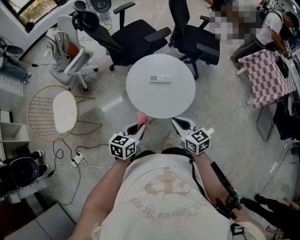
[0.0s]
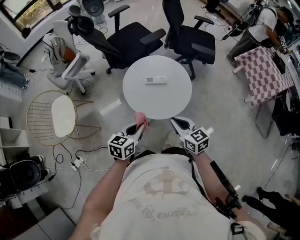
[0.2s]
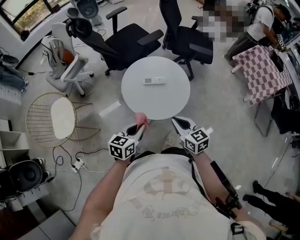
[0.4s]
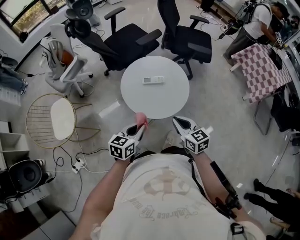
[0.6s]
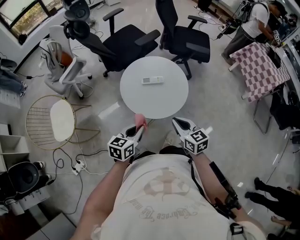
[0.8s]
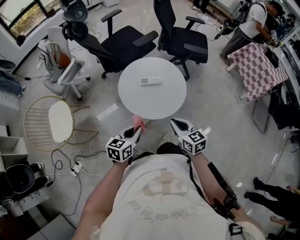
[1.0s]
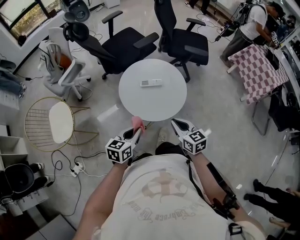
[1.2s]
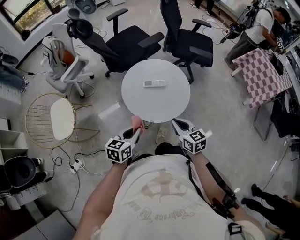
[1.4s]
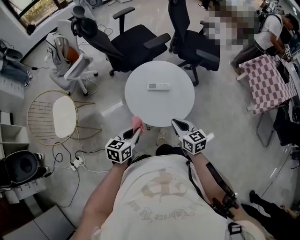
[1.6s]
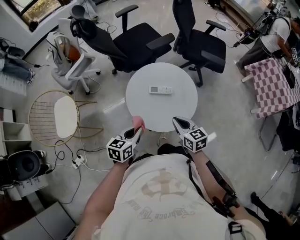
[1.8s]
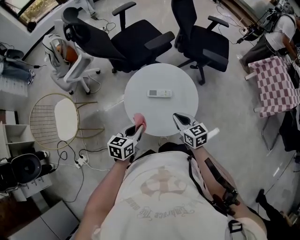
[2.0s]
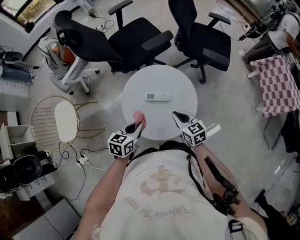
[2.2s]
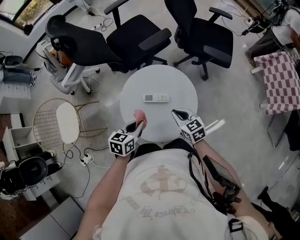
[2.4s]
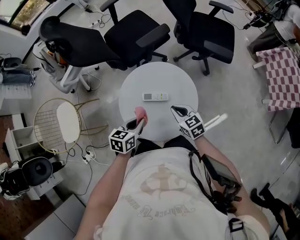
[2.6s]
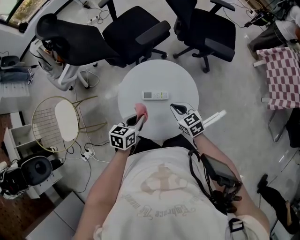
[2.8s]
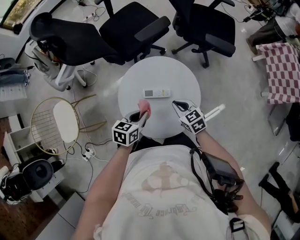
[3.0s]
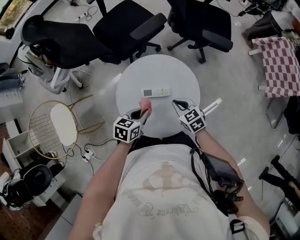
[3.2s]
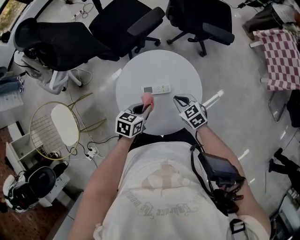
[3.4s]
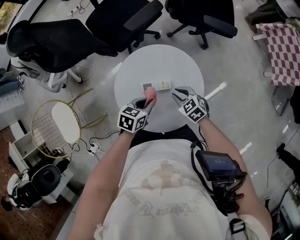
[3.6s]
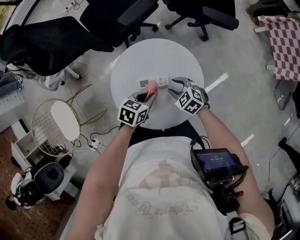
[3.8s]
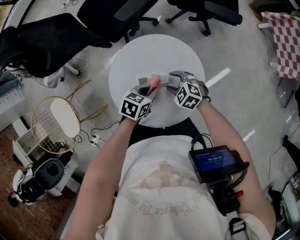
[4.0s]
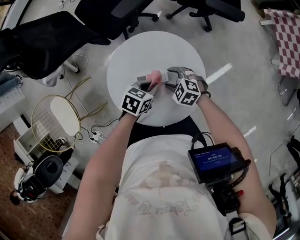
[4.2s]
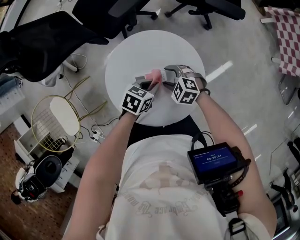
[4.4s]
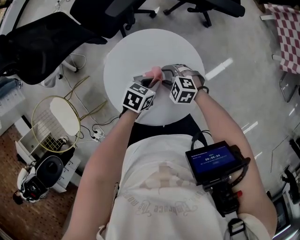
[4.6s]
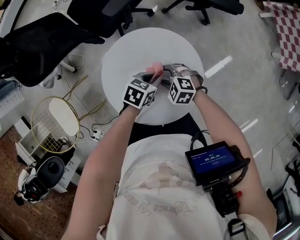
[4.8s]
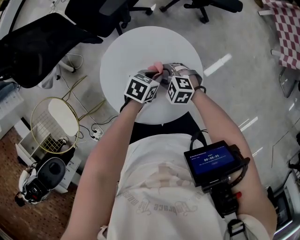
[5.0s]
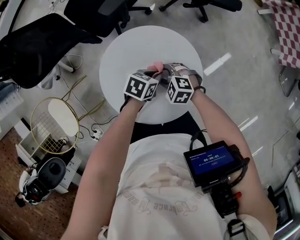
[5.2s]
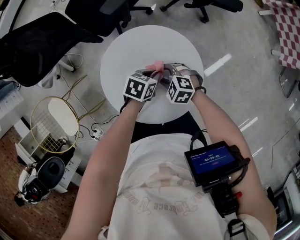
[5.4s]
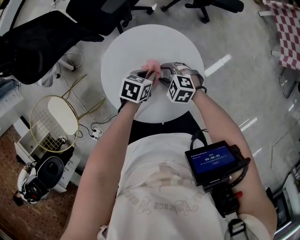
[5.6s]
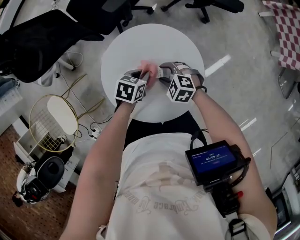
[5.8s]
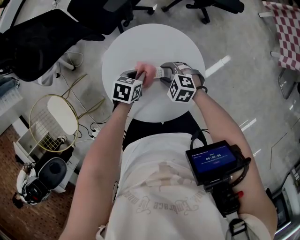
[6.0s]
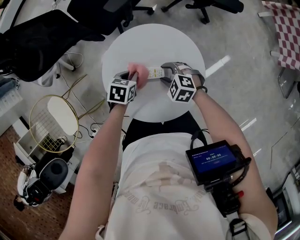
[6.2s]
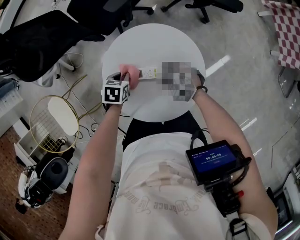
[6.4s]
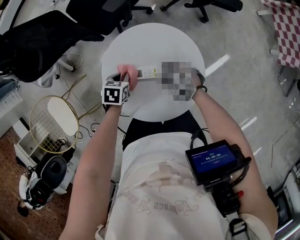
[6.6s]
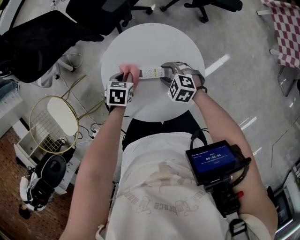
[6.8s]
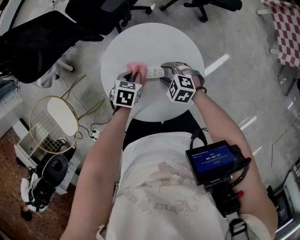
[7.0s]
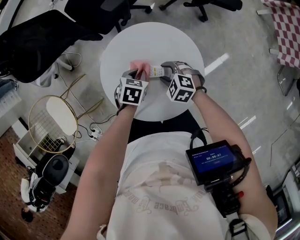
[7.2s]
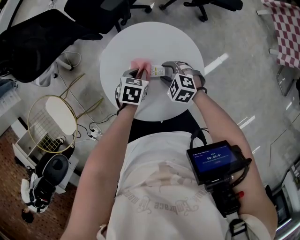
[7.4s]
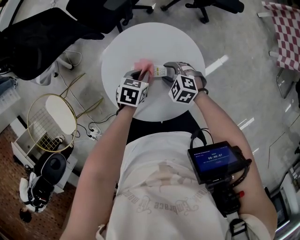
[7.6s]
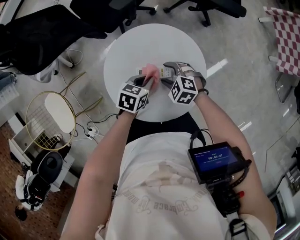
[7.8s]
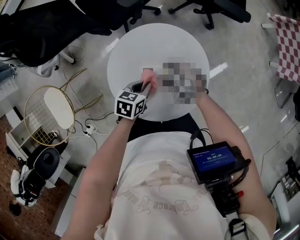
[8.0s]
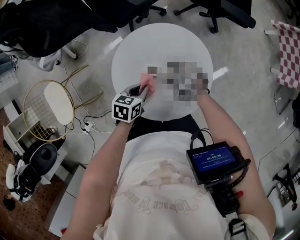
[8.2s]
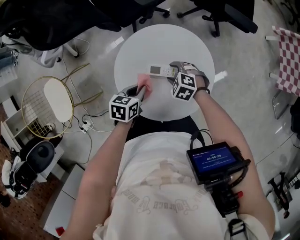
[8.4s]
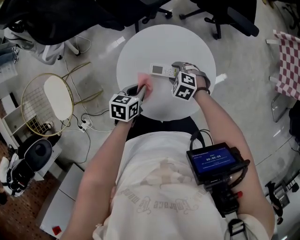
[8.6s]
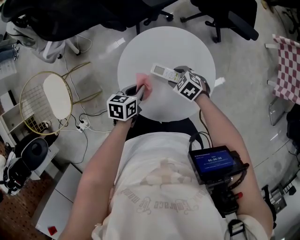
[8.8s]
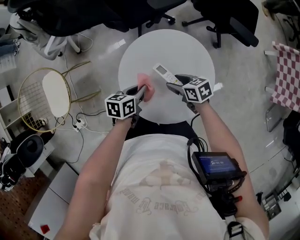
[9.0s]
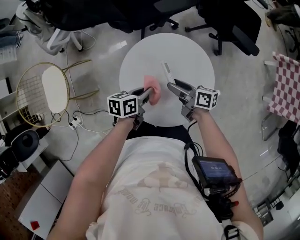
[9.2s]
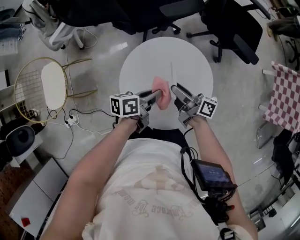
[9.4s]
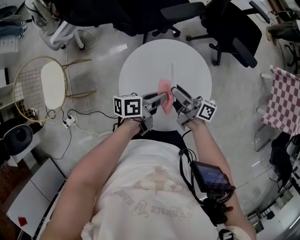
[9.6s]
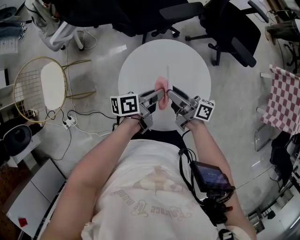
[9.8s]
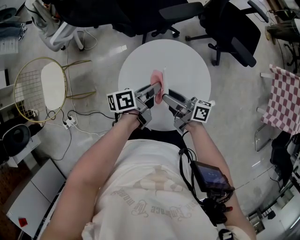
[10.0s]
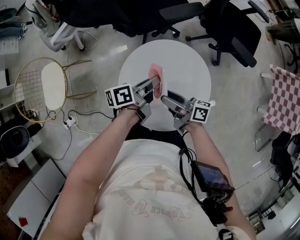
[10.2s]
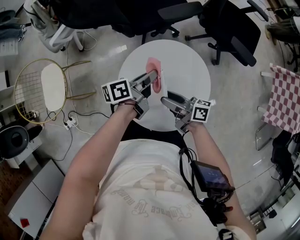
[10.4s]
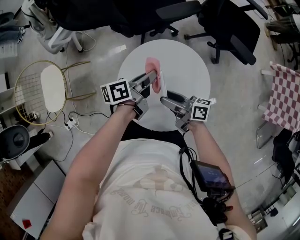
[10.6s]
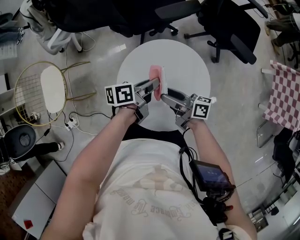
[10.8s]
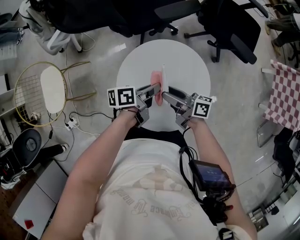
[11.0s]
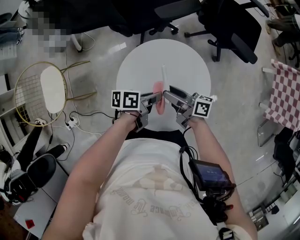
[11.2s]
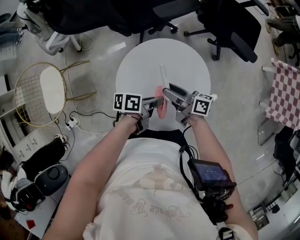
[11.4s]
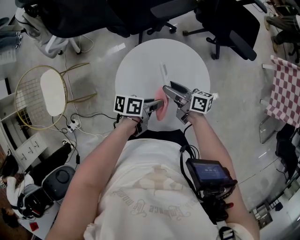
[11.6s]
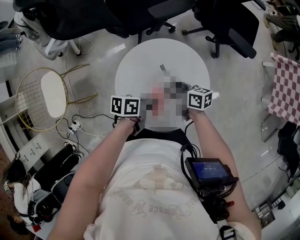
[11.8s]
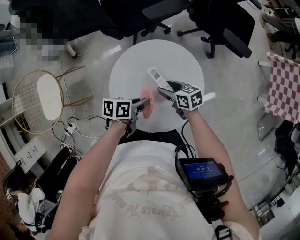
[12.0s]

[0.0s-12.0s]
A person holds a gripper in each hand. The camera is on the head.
0.0s to 1.6s: The right gripper changes place by some 5 cm.
1.6s to 3.0s: The right gripper heads forward and downward, covering roughly 20 cm. The left gripper goes some 20 cm forward.
3.0s to 4.4s: The right gripper is displaced downward by about 10 cm, rotates approximately 30 degrees, and opens its fingers; the left gripper moves roughly 15 cm, and changes its angle by roughly 30 degrees.
4.4s to 6.0s: The left gripper ends up some 5 cm from where it was.
7.6s to 9.0s: The left gripper changes place by about 10 cm, and swivels about 40 degrees; the right gripper rolls clockwise, seen from behind, by roughly 40 degrees.
9.0s to 10.4s: The grippers both shift upward by approximately 10 cm. The left gripper swivels roughly 40 degrees. The right gripper tilts its fingers some 40 degrees upward.
10.4s to 12.0s: The left gripper moves about 15 cm, and changes its angle by some 30 degrees, while the right gripper goes some 10 cm downward, and tips its fingers downward by some 40 degrees.

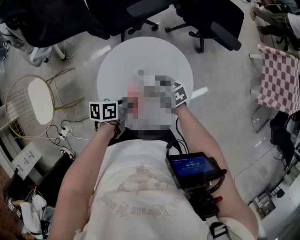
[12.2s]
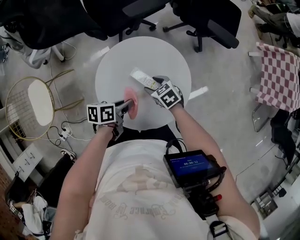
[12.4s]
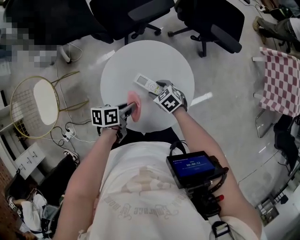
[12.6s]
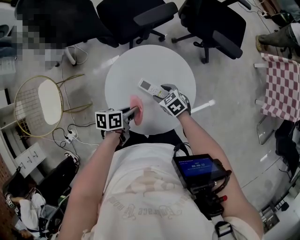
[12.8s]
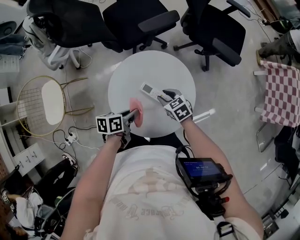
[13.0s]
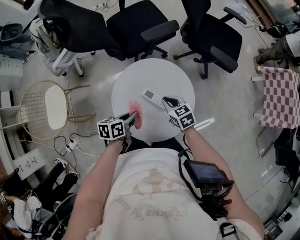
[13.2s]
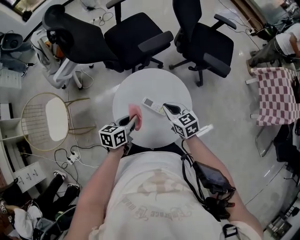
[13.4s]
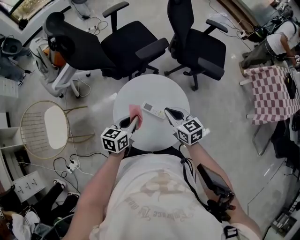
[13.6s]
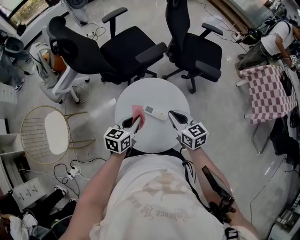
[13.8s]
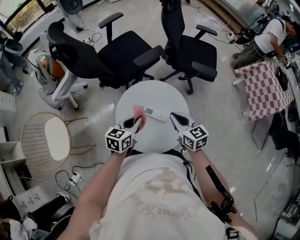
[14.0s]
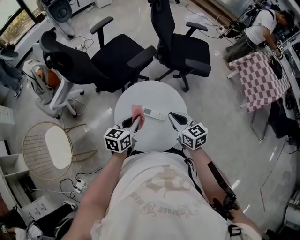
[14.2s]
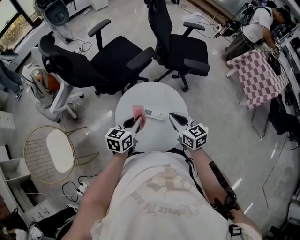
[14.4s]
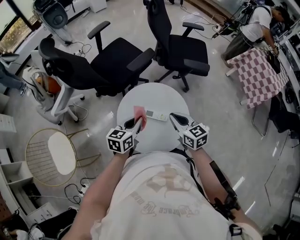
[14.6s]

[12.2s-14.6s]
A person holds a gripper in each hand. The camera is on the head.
12.2s to 13.4s: The right gripper moves upward, approximately 15 cm, turns by approximately 20 degrees, and closes up; the left gripper travels upward by about 10 cm, and rotates approximately 30 degrees.
13.4s to 14.6s: The two grippers go about 10 cm upward. The right gripper changes its angle by approximately 20 degrees, while the left gripper turns by approximately 20 degrees.

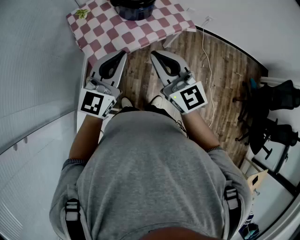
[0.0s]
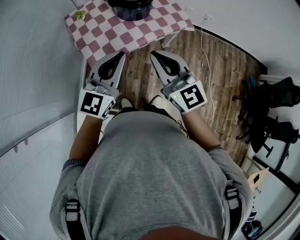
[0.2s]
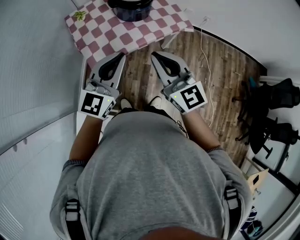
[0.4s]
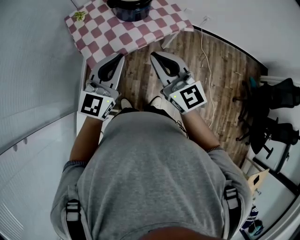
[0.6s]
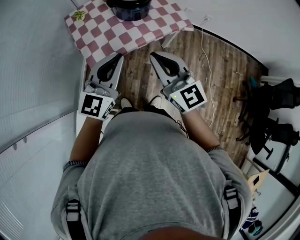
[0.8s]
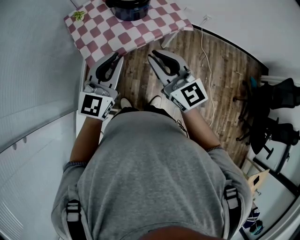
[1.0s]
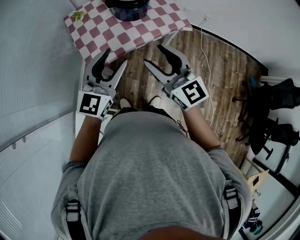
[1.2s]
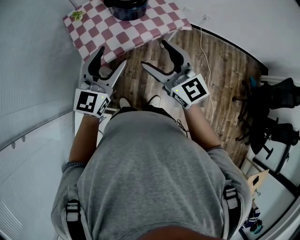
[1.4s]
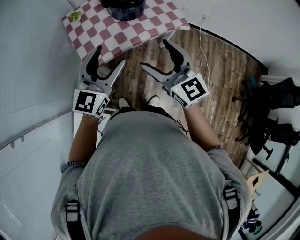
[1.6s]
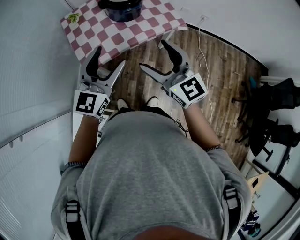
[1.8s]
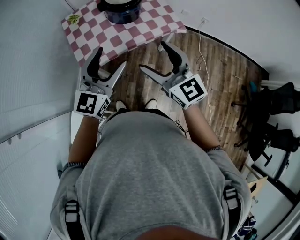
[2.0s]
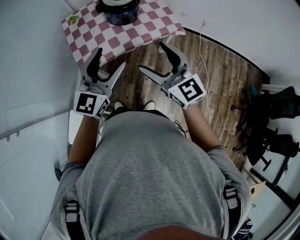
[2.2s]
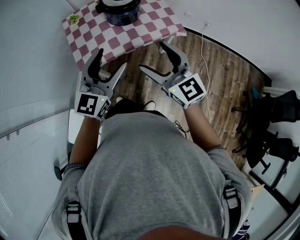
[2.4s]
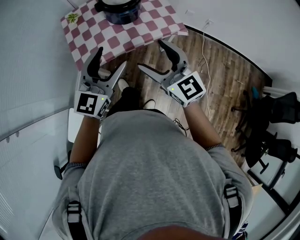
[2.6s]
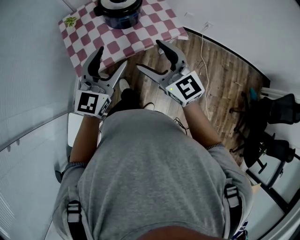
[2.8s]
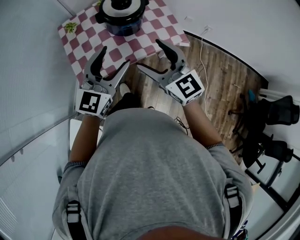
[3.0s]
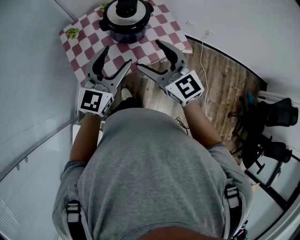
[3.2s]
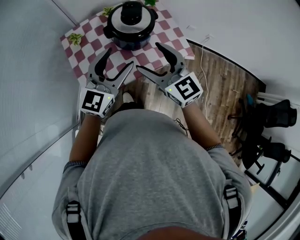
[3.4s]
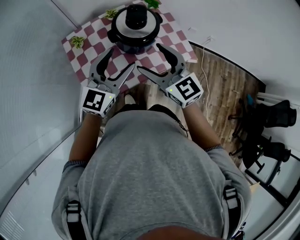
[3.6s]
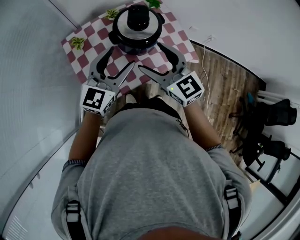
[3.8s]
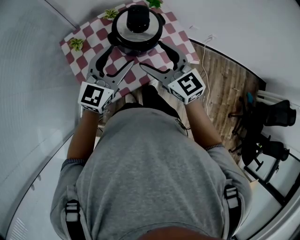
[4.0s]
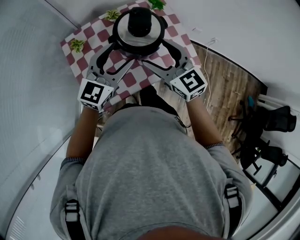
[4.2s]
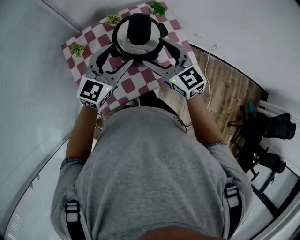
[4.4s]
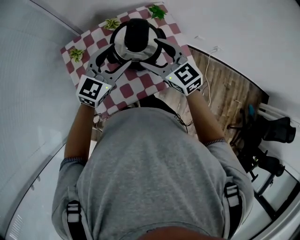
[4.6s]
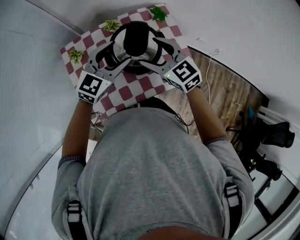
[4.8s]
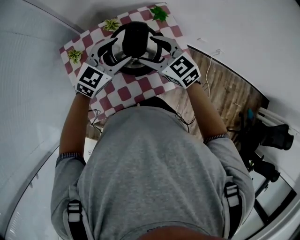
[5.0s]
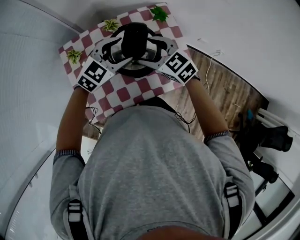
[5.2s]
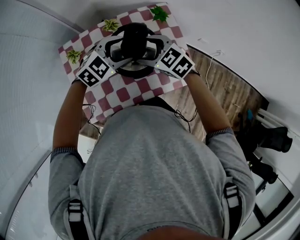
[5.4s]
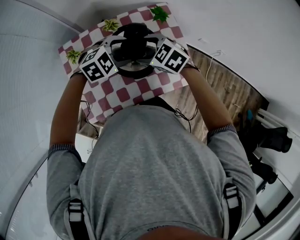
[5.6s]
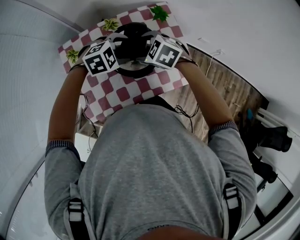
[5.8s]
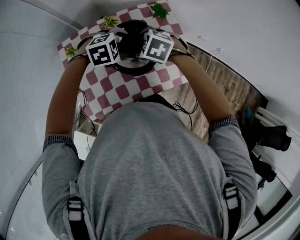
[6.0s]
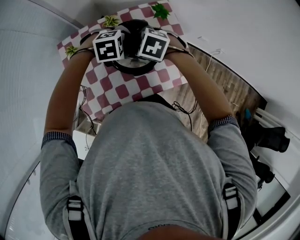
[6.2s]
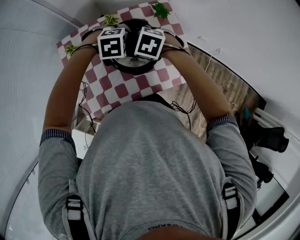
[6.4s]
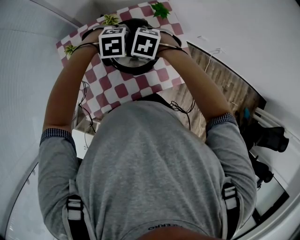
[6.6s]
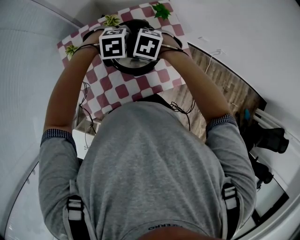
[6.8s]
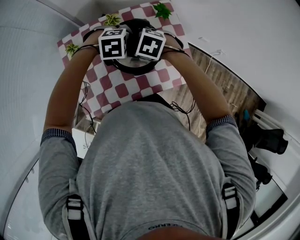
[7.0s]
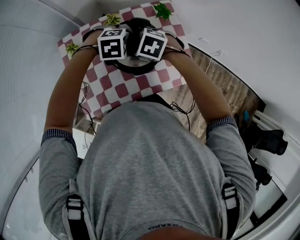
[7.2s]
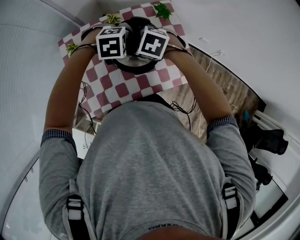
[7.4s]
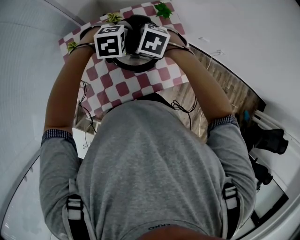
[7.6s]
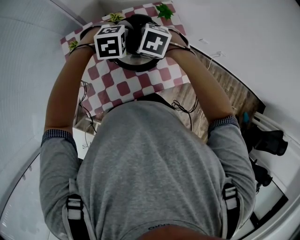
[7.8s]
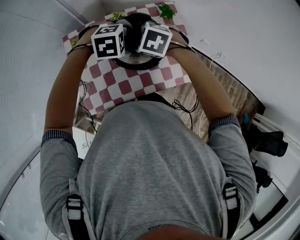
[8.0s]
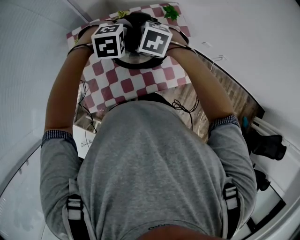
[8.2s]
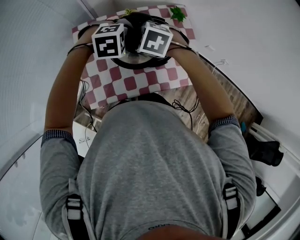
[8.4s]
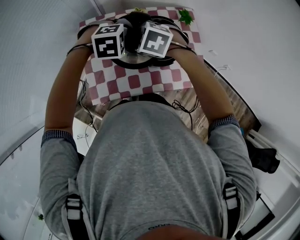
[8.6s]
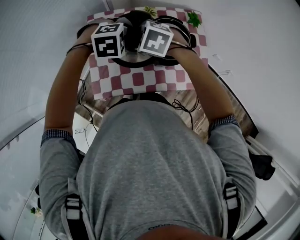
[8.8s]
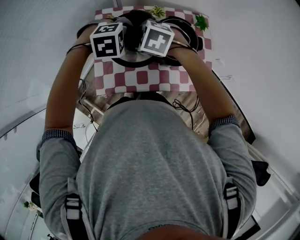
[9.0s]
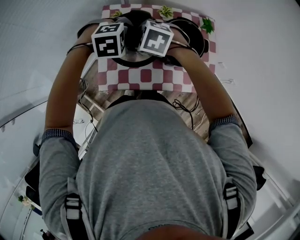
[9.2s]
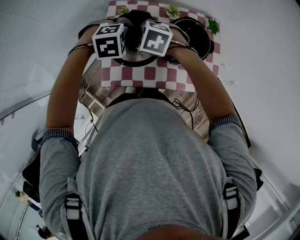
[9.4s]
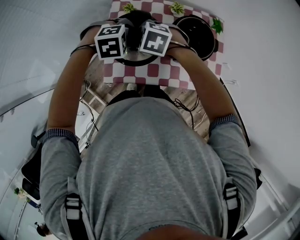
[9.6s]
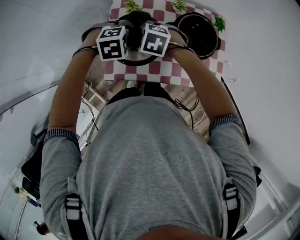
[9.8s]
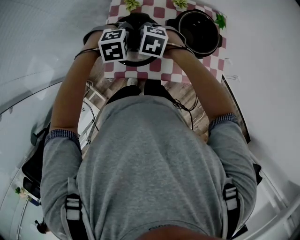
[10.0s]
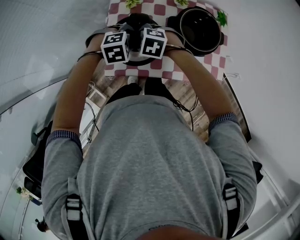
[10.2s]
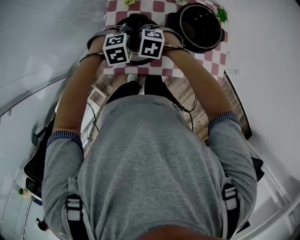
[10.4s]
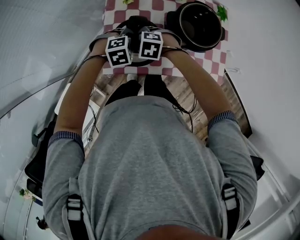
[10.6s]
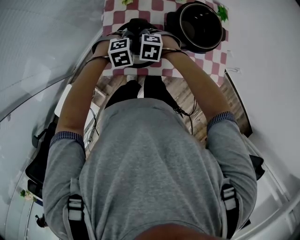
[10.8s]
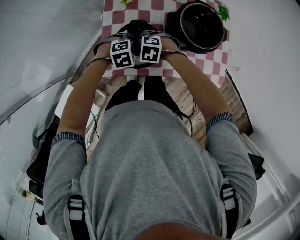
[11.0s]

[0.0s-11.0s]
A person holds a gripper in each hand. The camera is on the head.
0.0s to 1.6s: The right gripper is displaced to the right by about 5 cm, and opens up, while the left gripper opens its fingers.
1.6s to 3.2s: The two grippers go about 20 cm forward.
3.2s to 4.8s: Both grippers move forward, approximately 25 cm.
4.8s to 6.2s: Both grippers travel together downward, roughly 10 cm. The right gripper points its fingers some 40 degrees further downward. The left gripper tilts its fingers about 50 degrees downward.
6.2s to 7.8s: The grippers make only small movements.
7.8s to 9.4s: The right gripper moves some 25 cm, and swivels about 20 degrees; the left gripper moves about 25 cm, and swivels about 20 degrees.
9.4s to 11.0s: The grippers both shift downward by approximately 20 cm.
